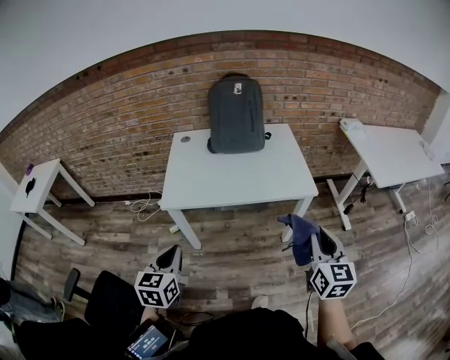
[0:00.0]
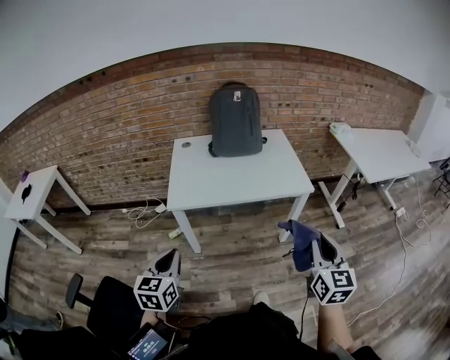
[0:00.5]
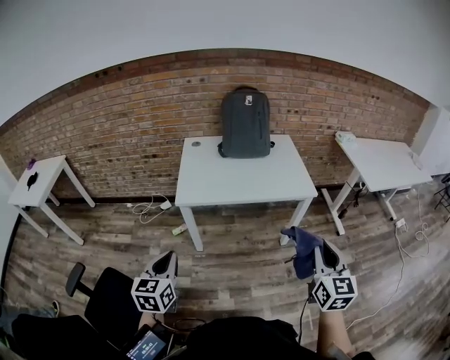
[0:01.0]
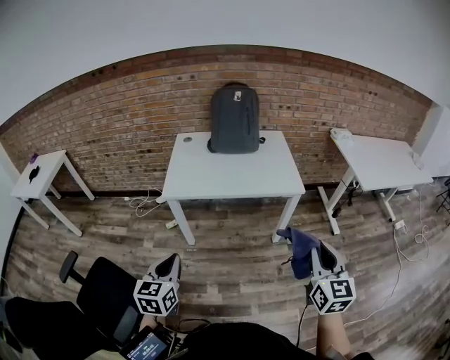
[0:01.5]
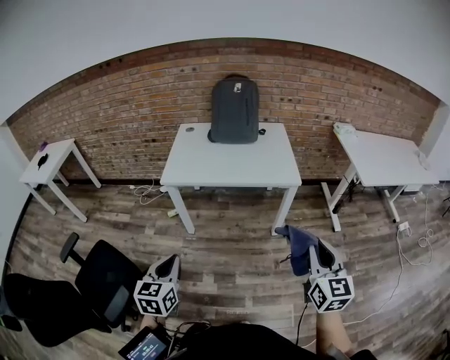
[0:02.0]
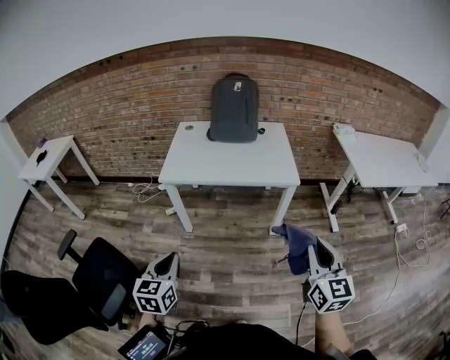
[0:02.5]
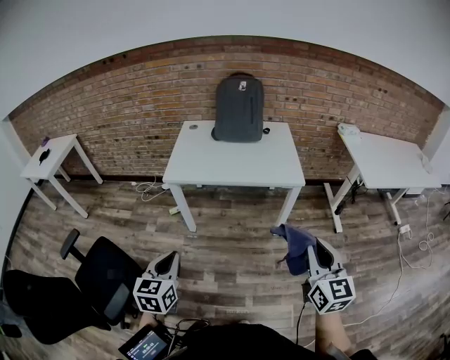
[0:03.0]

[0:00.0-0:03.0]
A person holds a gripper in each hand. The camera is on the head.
0:00.0 to 0:01.5: The two grippers go about 10 cm backward.
0:01.5 to 0:03.0: The left gripper travels backward by roughly 5 cm.

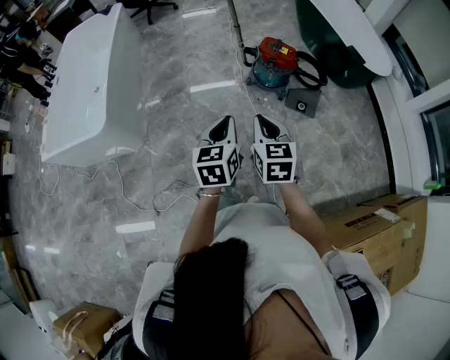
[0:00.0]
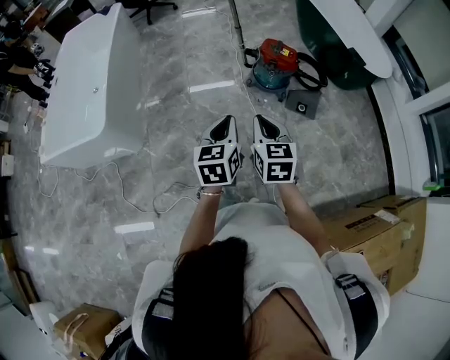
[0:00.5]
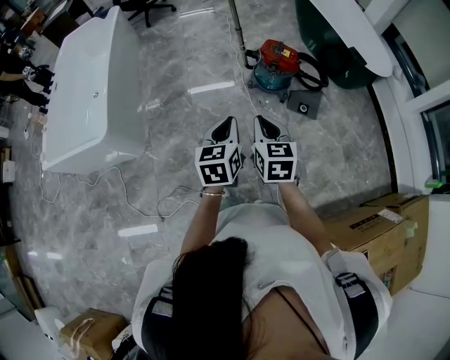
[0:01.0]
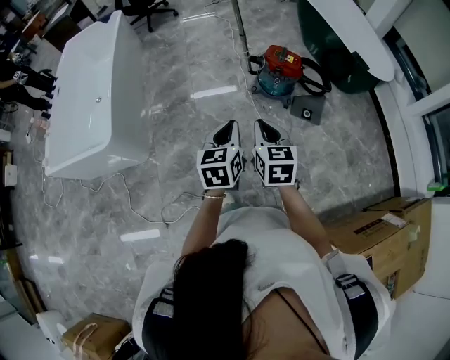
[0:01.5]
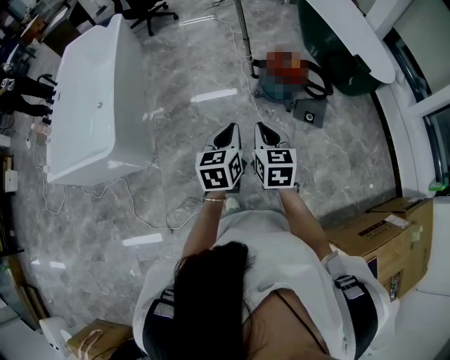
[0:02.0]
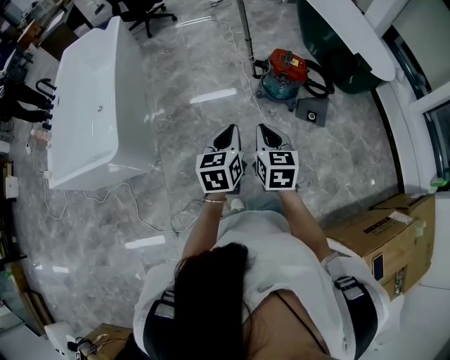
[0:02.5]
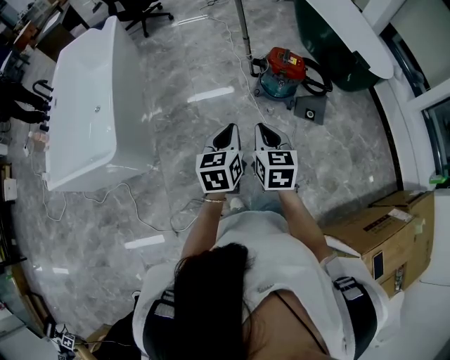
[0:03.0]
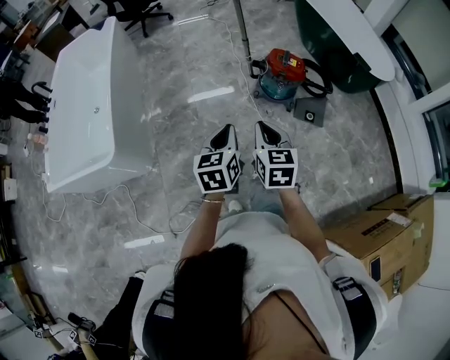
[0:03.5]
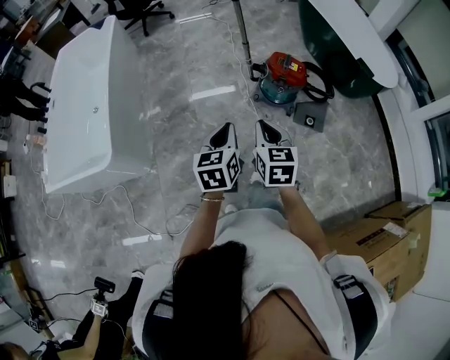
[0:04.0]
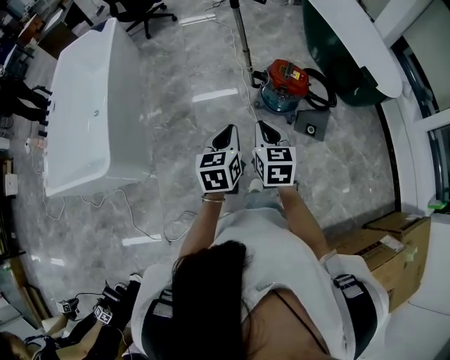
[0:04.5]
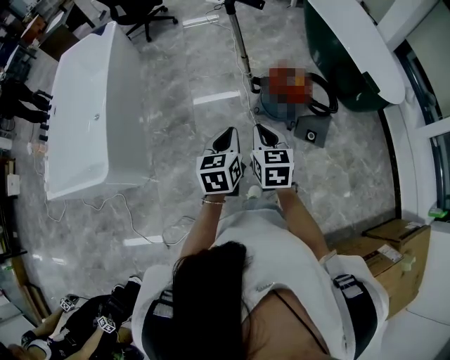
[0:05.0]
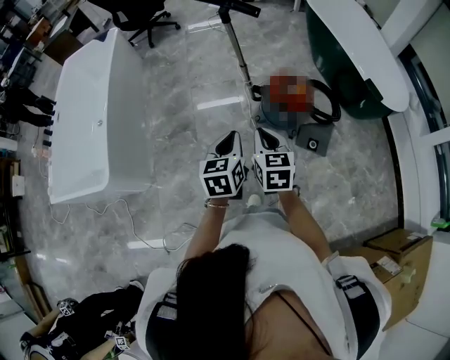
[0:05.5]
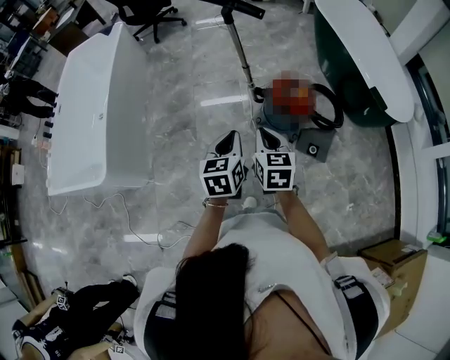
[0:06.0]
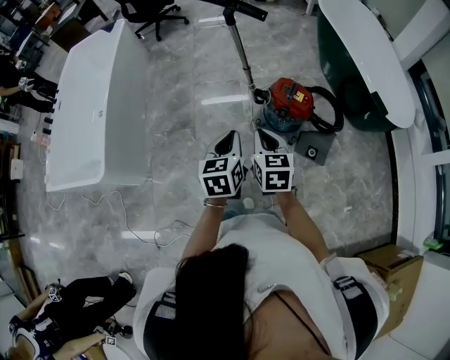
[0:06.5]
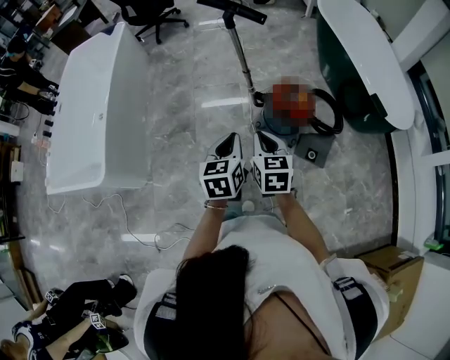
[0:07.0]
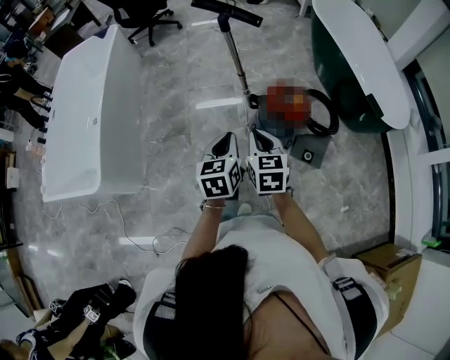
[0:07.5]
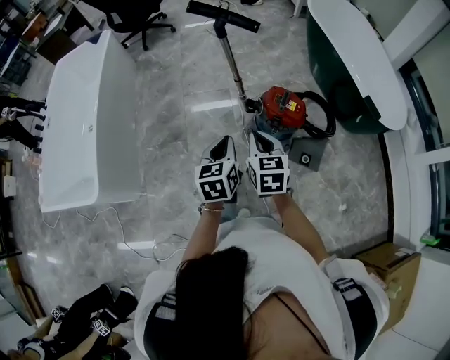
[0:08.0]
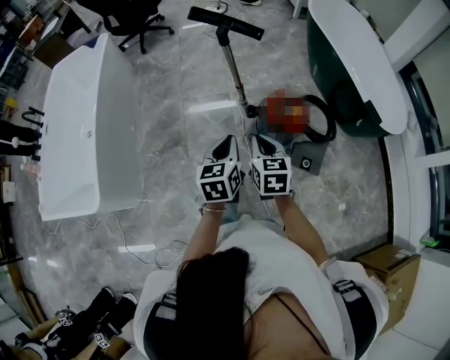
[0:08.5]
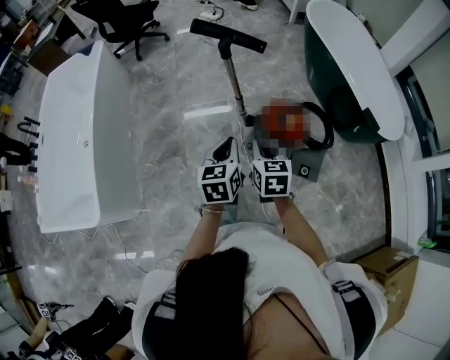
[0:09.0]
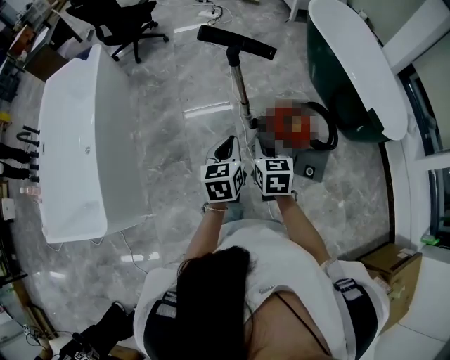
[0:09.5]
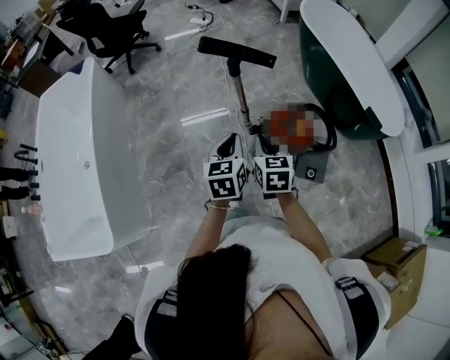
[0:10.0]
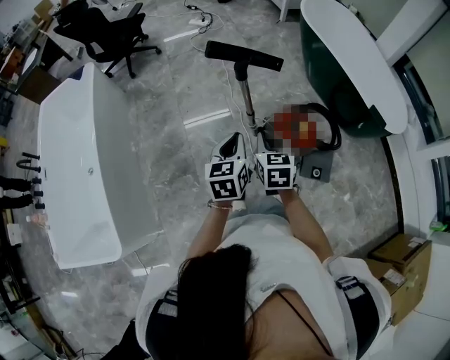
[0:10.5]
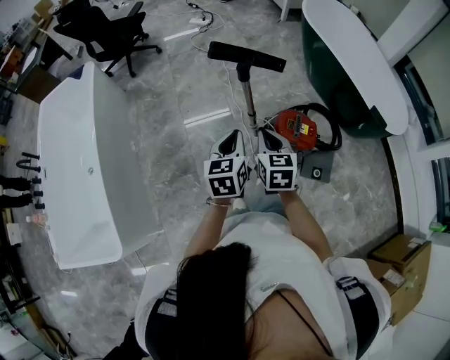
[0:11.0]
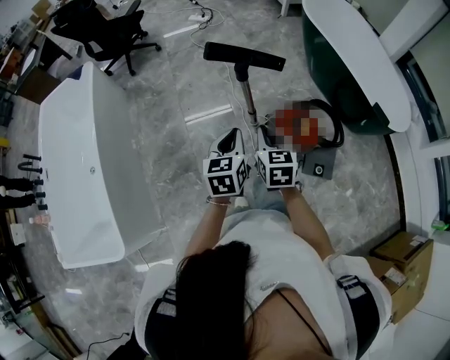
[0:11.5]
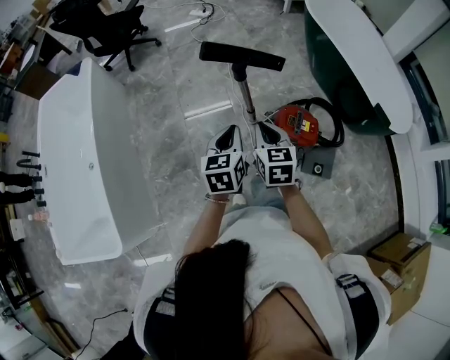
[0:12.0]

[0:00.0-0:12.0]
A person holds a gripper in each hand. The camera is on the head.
0:00.0 to 0:02.0: The two grippers go approximately 10 cm to the left and forward.
0:02.0 to 0:04.0: The grippers both shift forward by approximately 10 cm.
0:04.0 to 0:06.0: Both grippers move forward and to the right, approximately 20 cm.
0:06.0 to 0:08.0: Both grippers travel together forward, some 5 cm.
0:08.0 to 0:10.0: The grippers both shift forward by some 20 cm.
0:10.0 to 0:12.0: The grippers both shift forward by some 5 cm.

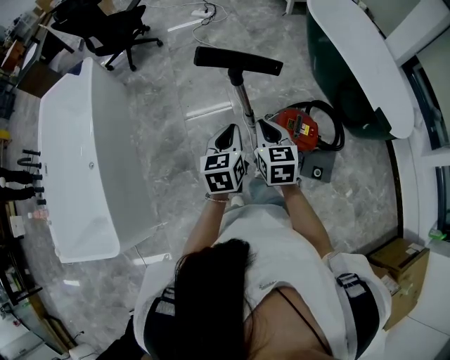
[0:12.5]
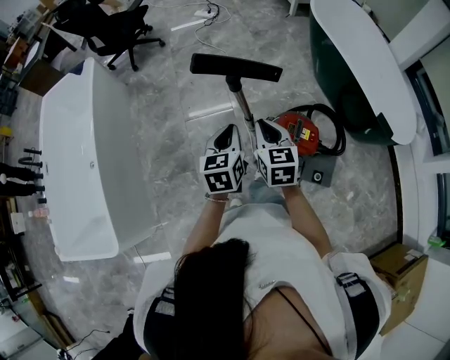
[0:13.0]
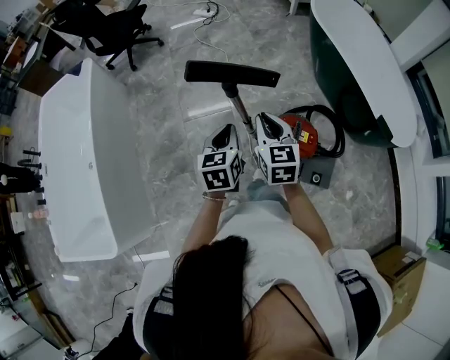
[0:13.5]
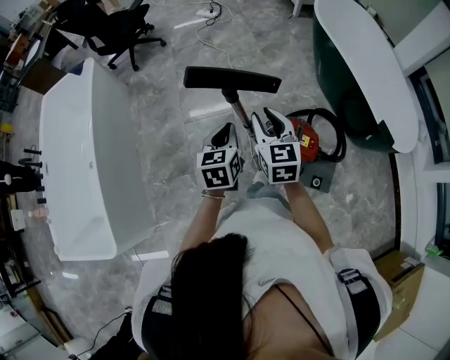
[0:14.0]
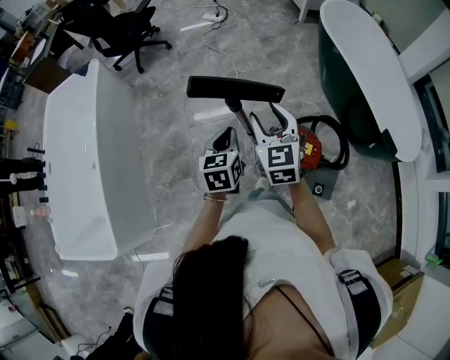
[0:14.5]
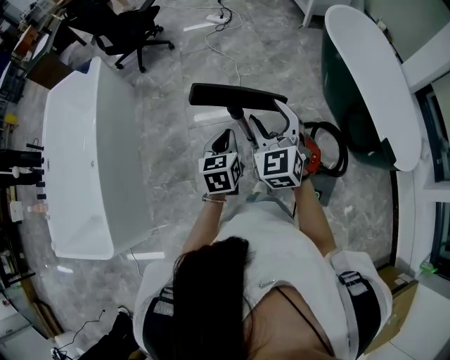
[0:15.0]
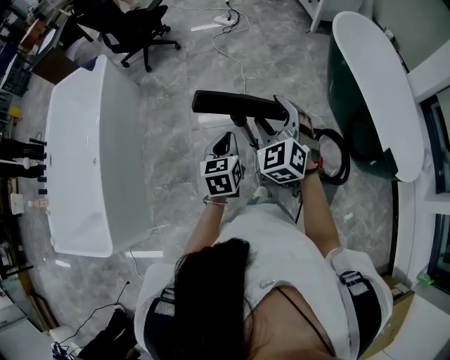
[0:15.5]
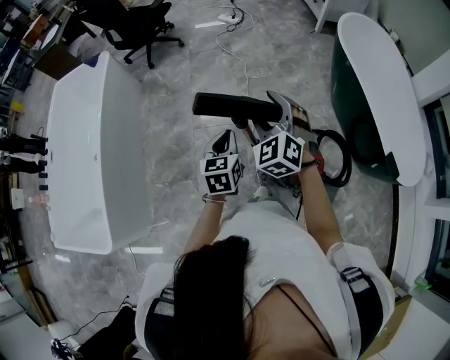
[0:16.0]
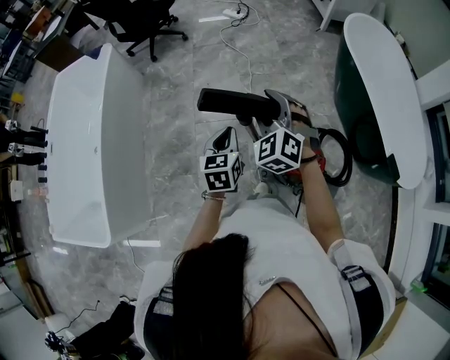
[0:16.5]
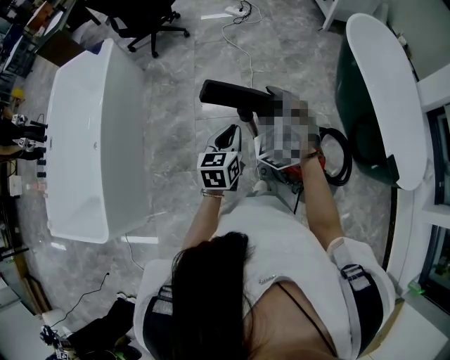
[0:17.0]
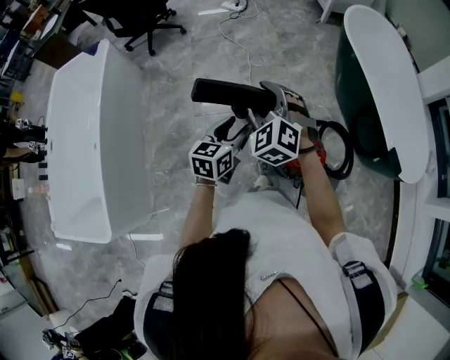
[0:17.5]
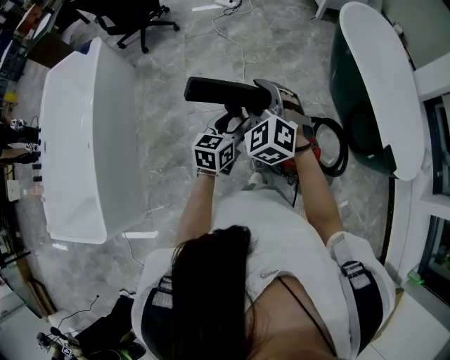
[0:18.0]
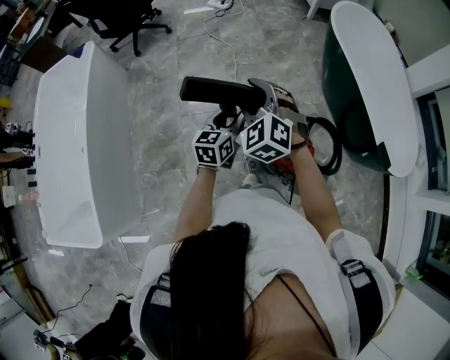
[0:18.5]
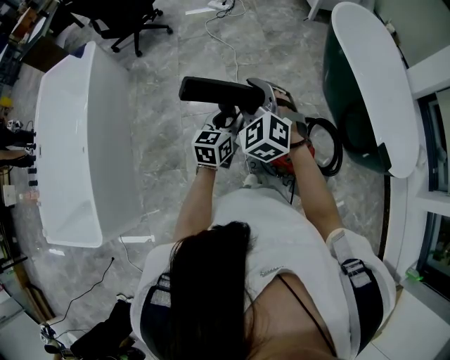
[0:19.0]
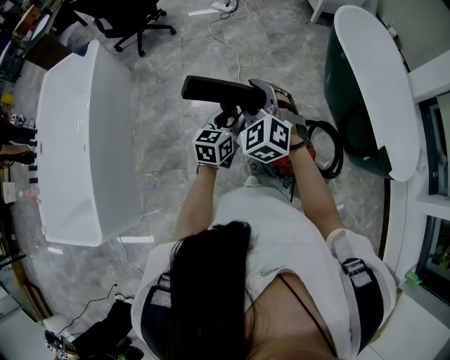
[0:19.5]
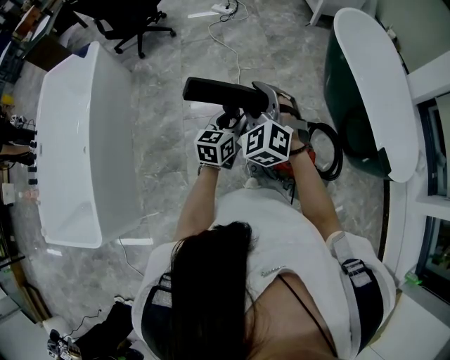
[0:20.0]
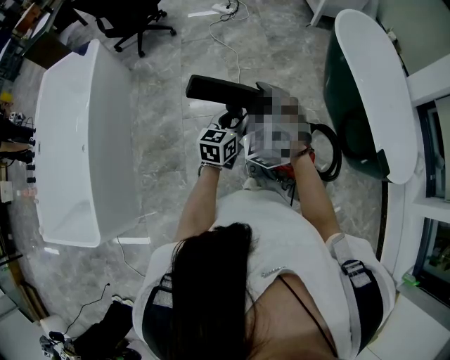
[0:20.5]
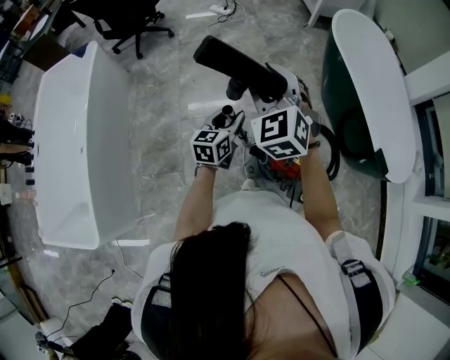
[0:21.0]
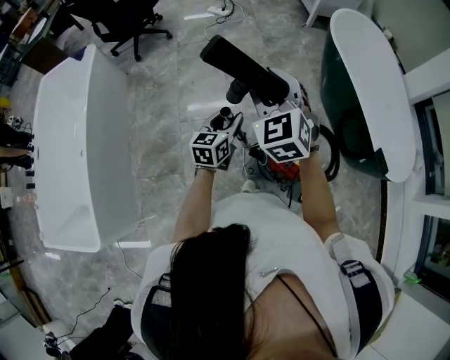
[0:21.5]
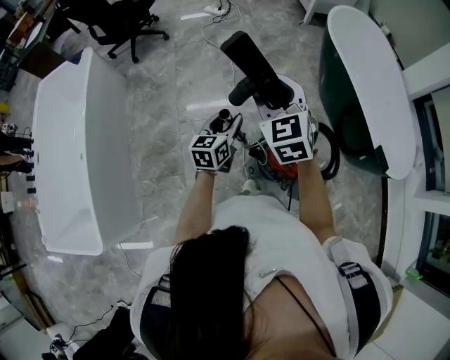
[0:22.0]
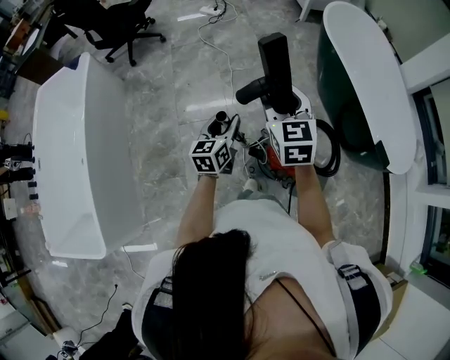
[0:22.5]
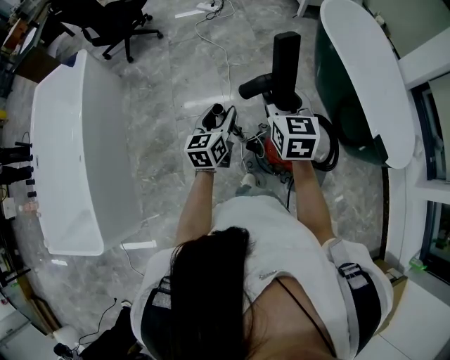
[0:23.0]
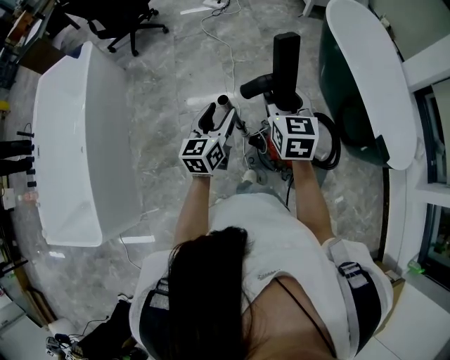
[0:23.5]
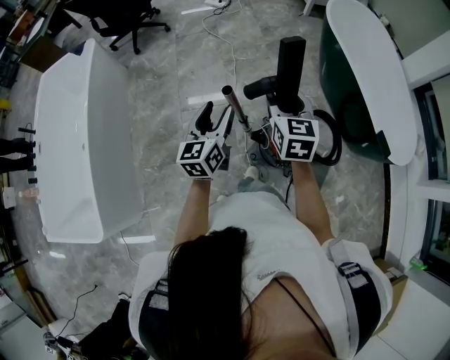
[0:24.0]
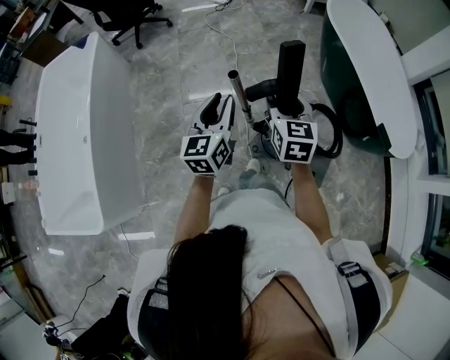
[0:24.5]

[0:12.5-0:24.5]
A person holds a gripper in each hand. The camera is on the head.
0:12.5 to 0:14.5: The right gripper moves forward and upward, about 10 cm, rotates some 20 degrees, and opens. The left gripper moves forward, roughly 10 cm.
0:14.5 to 0:16.5: The right gripper moves forward, some 5 cm, and rotates around the line of its fingers by approximately 40 degrees, counterclockwise from behind.
0:16.5 to 0:18.5: The left gripper goes about 10 cm to the right and forward, changes its angle by some 20 degrees, and opens.
0:18.5 to 0:20.5: There are only small adjustments of the grippers.
0:20.5 to 0:22.5: The right gripper moves to the right, approximately 10 cm, and rotates around the line of its fingers by some 40 degrees, clockwise from behind.
0:22.5 to 0:24.5: The left gripper is displaced backward and upward by approximately 15 cm. The right gripper shifts about 10 cm backward.
